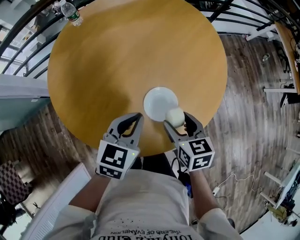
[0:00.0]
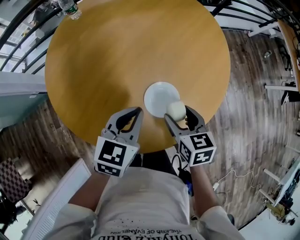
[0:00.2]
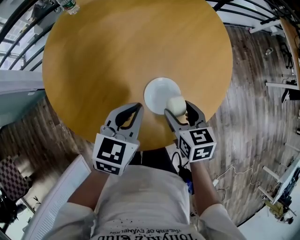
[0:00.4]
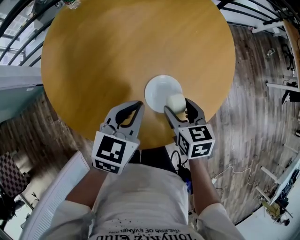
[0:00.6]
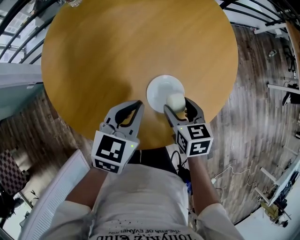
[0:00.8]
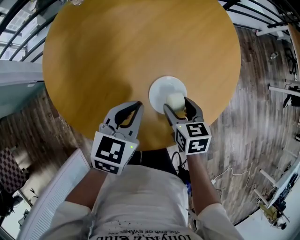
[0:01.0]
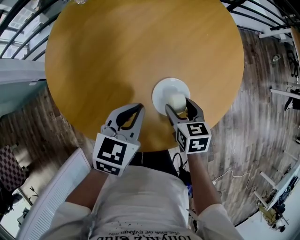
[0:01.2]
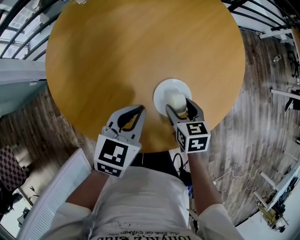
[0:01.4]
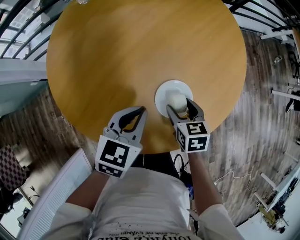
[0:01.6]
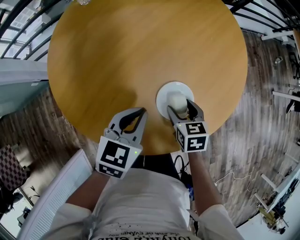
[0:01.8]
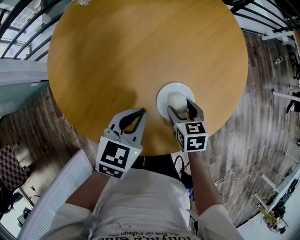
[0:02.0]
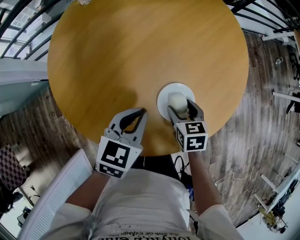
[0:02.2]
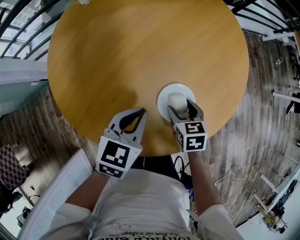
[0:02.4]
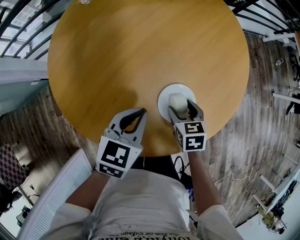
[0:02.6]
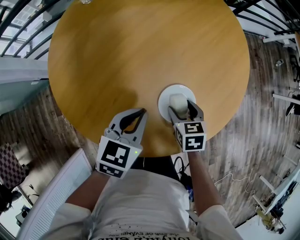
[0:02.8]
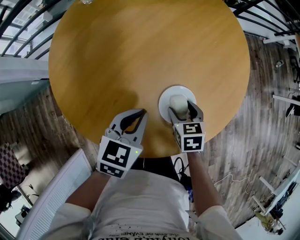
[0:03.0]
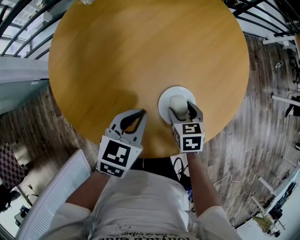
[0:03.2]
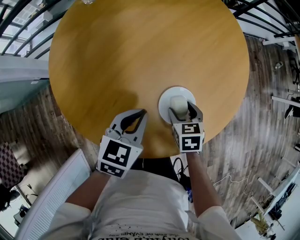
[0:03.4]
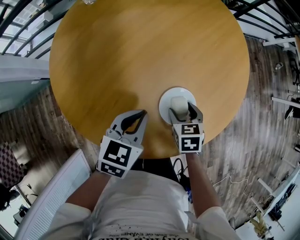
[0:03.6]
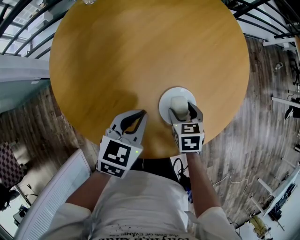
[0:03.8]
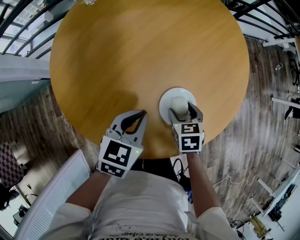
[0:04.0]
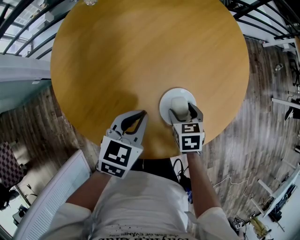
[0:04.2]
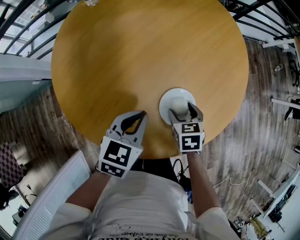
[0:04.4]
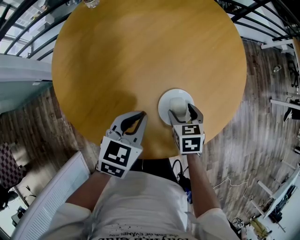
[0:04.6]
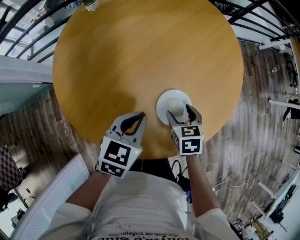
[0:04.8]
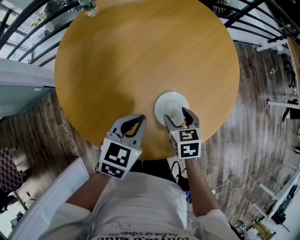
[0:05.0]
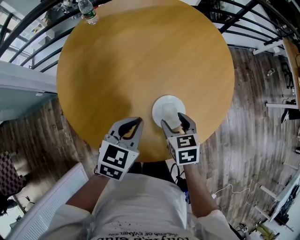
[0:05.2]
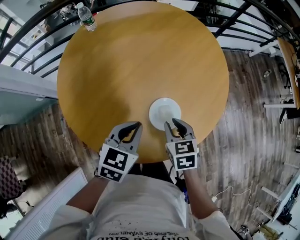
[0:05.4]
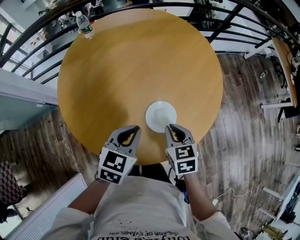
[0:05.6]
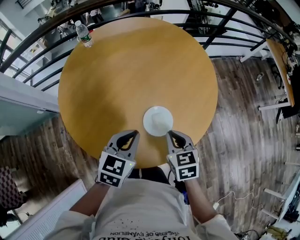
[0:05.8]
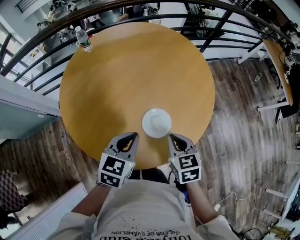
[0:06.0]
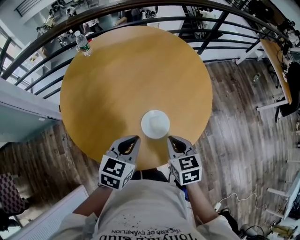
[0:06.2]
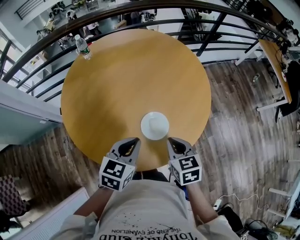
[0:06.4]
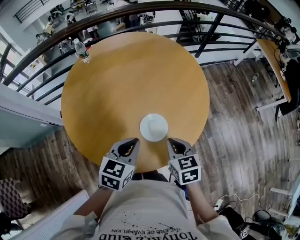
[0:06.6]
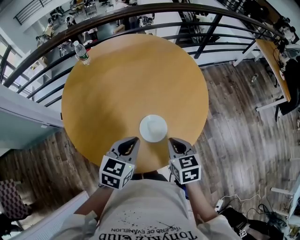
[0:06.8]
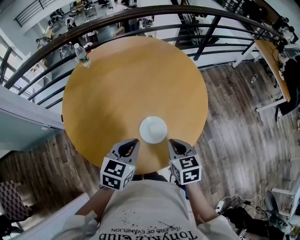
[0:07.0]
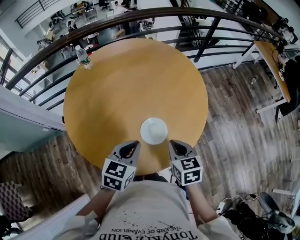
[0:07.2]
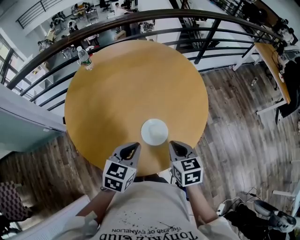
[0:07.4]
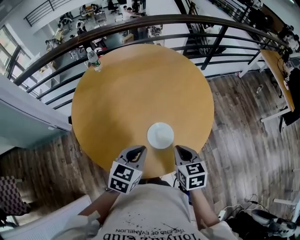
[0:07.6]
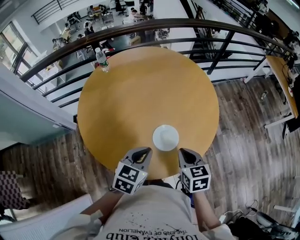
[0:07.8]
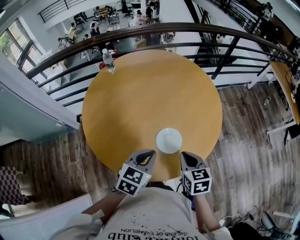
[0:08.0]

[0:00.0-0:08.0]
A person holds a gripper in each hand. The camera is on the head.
0:00.0 to 0:01.6: The right gripper travels downward by some 10 cm; the left gripper moves roughly 5 cm.
0:01.6 to 0:04.8: There are only small adjustments of the grippers.
0:04.8 to 0:06.4: The left gripper travels upward and backward by approximately 10 cm; the right gripper travels upward and backward by roughly 15 cm, and closes its fingers.
0:06.4 to 0:08.0: The grippers make only small movements.

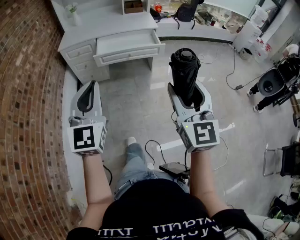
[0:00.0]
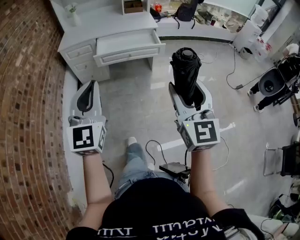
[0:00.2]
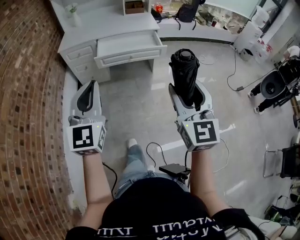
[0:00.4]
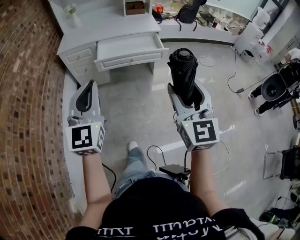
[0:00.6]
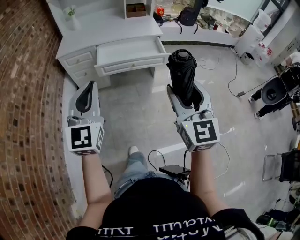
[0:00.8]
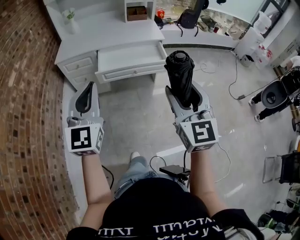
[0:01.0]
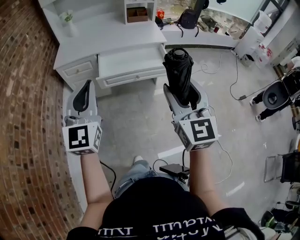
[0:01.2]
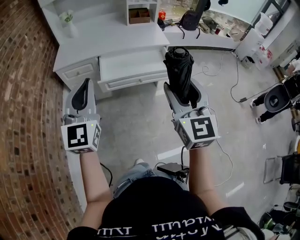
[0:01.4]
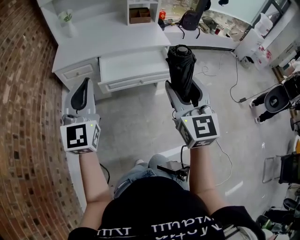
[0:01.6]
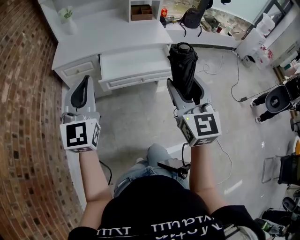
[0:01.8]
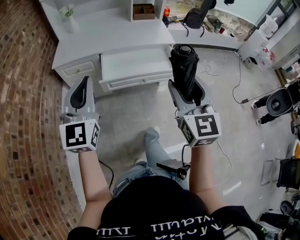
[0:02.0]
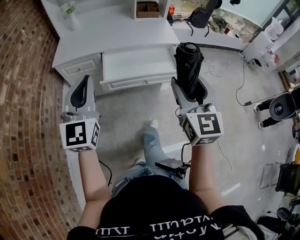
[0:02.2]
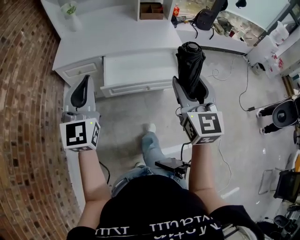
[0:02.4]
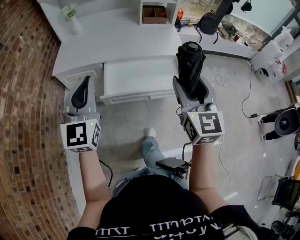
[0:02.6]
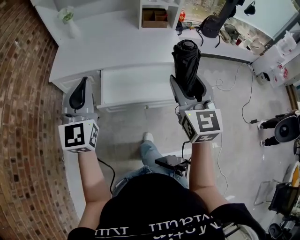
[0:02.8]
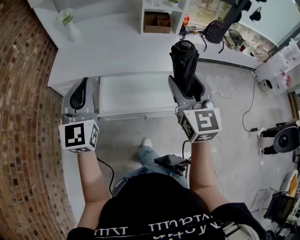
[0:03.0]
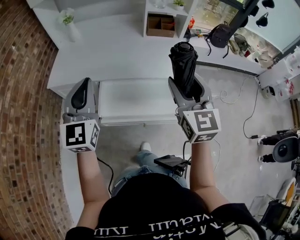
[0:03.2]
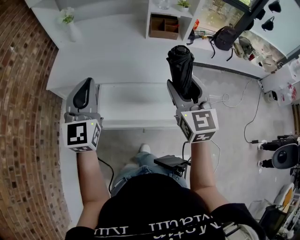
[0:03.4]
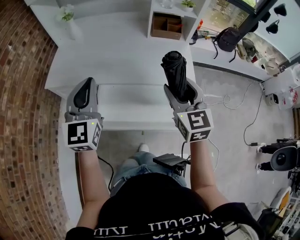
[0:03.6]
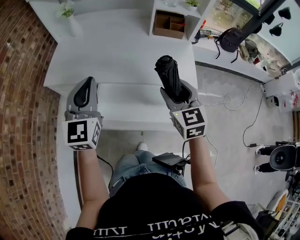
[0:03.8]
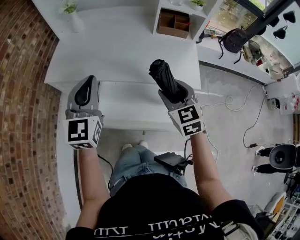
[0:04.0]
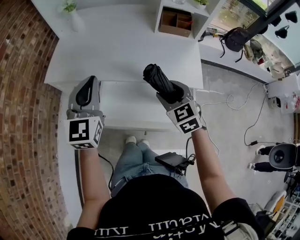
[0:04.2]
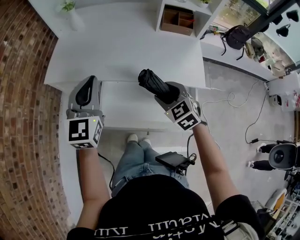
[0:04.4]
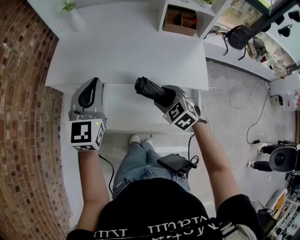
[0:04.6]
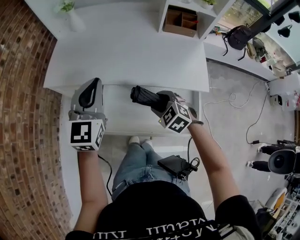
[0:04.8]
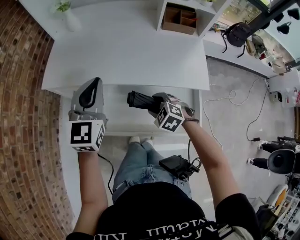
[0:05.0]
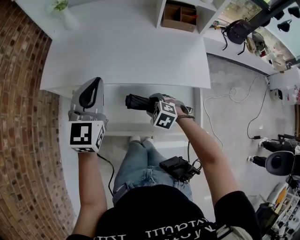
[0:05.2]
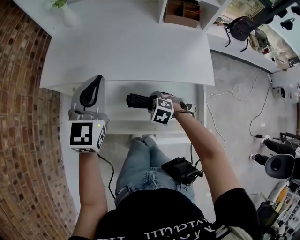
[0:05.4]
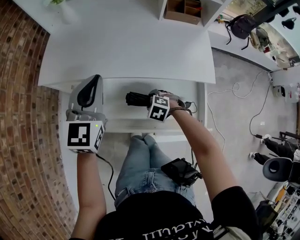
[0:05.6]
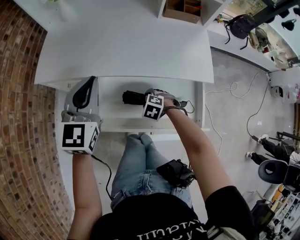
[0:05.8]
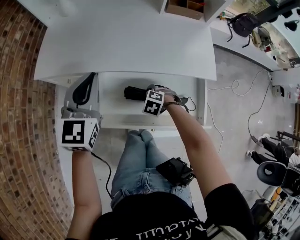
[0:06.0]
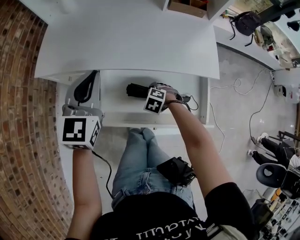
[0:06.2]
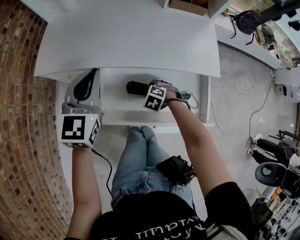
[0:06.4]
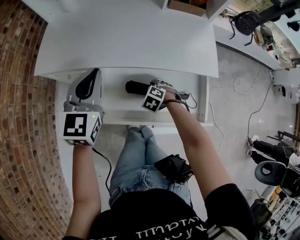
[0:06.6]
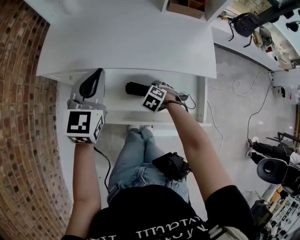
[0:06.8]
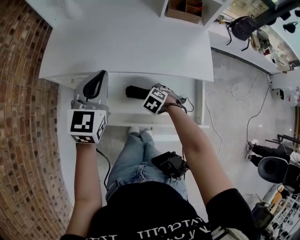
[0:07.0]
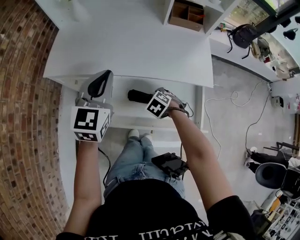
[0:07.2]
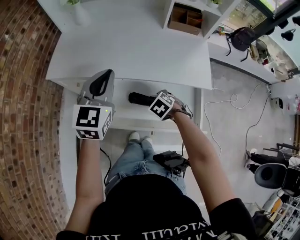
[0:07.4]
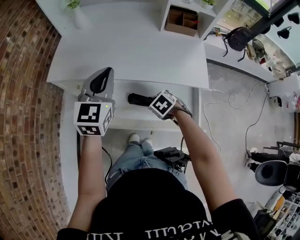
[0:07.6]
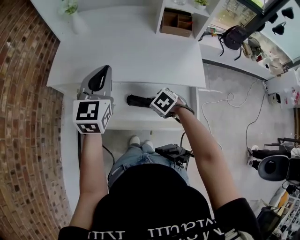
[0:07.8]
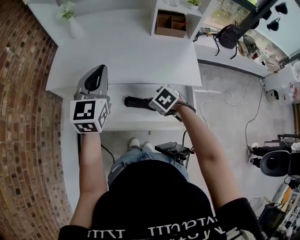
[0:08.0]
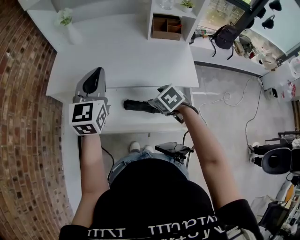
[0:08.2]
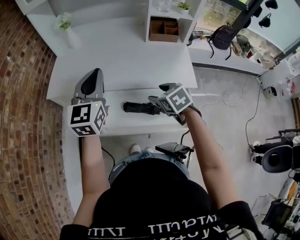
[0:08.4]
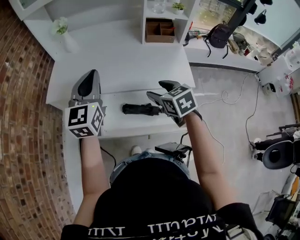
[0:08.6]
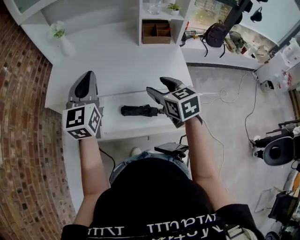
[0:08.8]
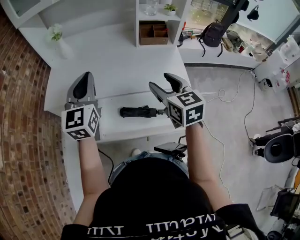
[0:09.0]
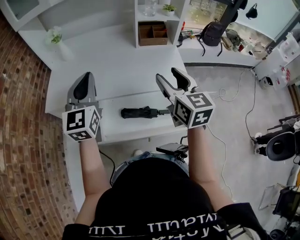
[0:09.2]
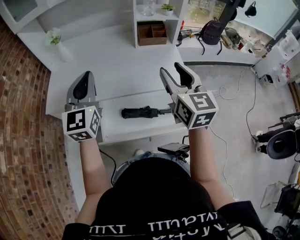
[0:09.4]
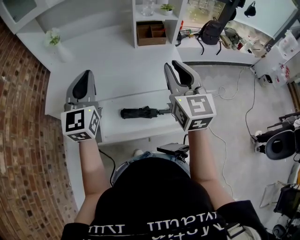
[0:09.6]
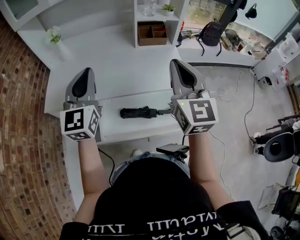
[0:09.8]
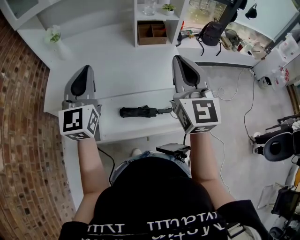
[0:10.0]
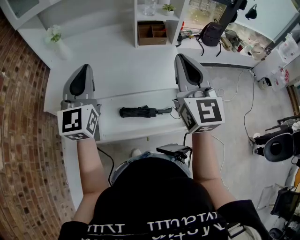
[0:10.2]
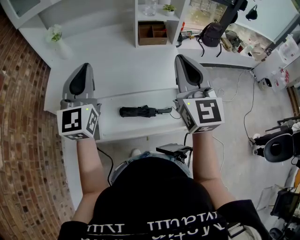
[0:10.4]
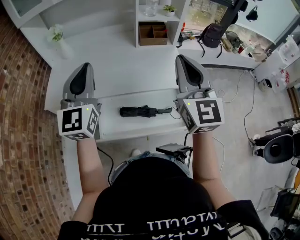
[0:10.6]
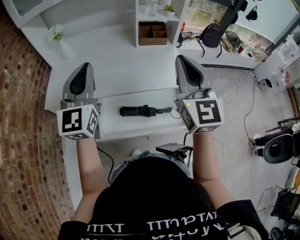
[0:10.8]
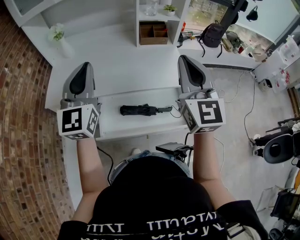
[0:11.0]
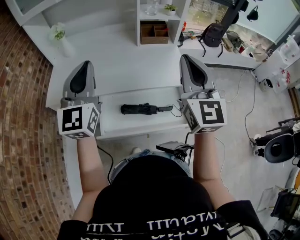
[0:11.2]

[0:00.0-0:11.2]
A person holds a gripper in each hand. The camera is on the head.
0:00.0 to 0:01.6: The two grippers go about 30 cm forward.
0:01.6 to 0:03.2: The grippers both shift forward by about 35 cm.
0:03.2 to 0:04.8: The left gripper shifts some 15 cm forward and downward. The right gripper goes roughly 30 cm downward, and tips its fingers downward by approximately 50 degrees.
0:04.8 to 0:06.4: The left gripper shifts about 5 cm downward; the right gripper moves downward, about 20 cm, and changes its angle by about 20 degrees.
0:06.4 to 0:08.0: The left gripper heads upward, covering roughly 10 cm; the right gripper travels upward by approximately 20 cm, and rotates about 30 degrees.
0:08.0 to 0:09.6: The left gripper moves upward, some 5 cm. Meanwhile the right gripper moves upward, approximately 30 cm, tilts its fingers about 60 degrees upward, and closes its fingers.
0:09.6 to 0:11.2: The right gripper travels upward by approximately 5 cm. Meanwhile the left gripper ends up about 5 cm from where it was.

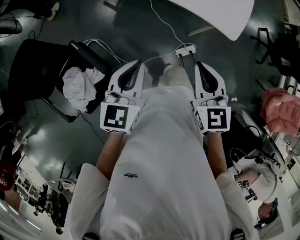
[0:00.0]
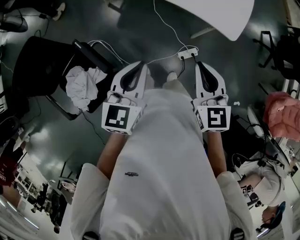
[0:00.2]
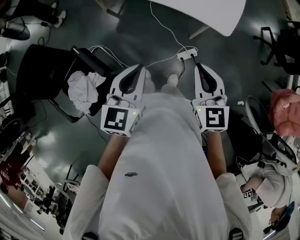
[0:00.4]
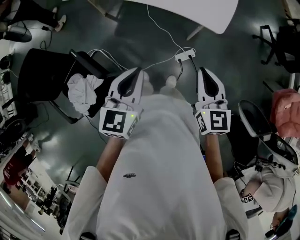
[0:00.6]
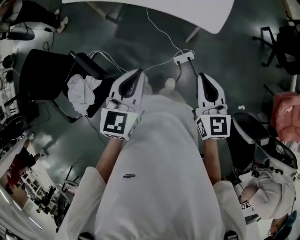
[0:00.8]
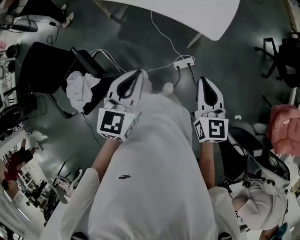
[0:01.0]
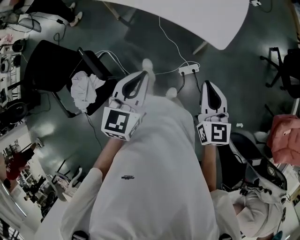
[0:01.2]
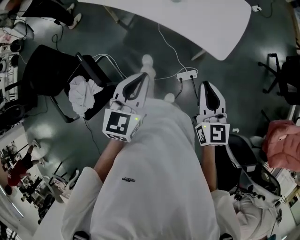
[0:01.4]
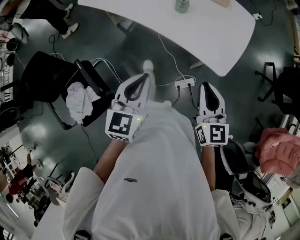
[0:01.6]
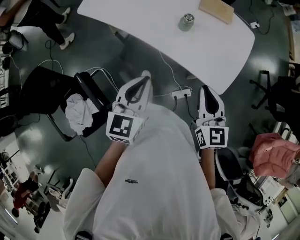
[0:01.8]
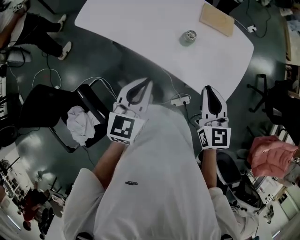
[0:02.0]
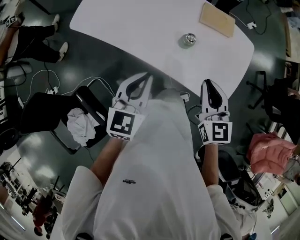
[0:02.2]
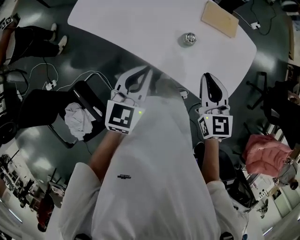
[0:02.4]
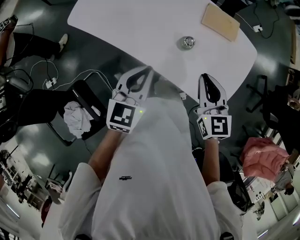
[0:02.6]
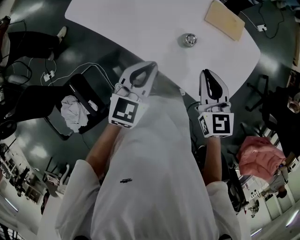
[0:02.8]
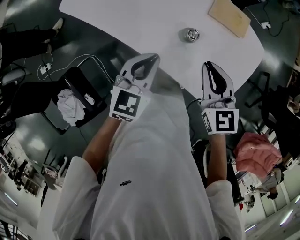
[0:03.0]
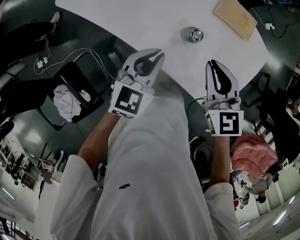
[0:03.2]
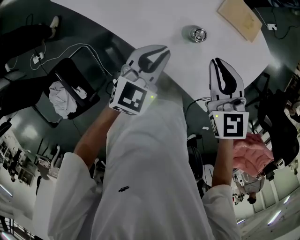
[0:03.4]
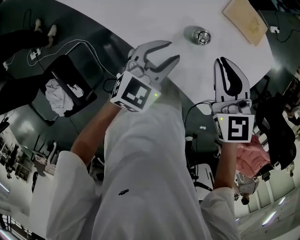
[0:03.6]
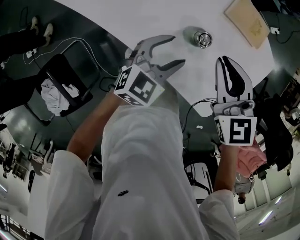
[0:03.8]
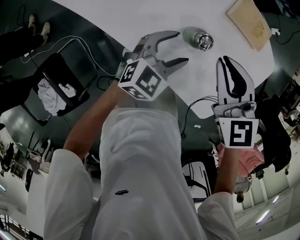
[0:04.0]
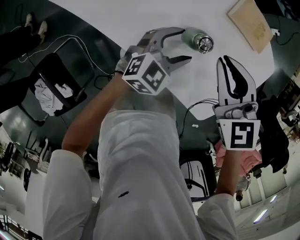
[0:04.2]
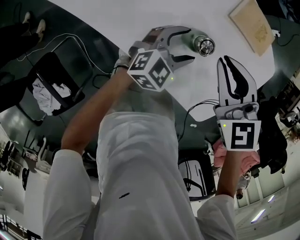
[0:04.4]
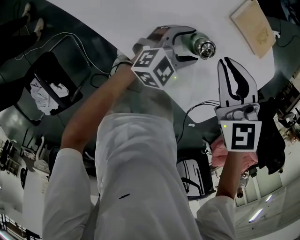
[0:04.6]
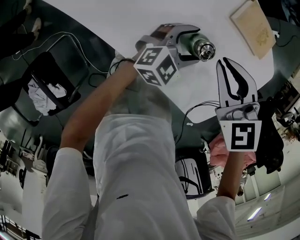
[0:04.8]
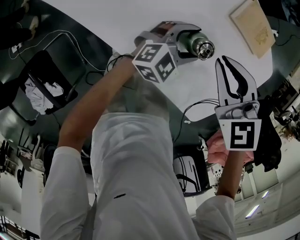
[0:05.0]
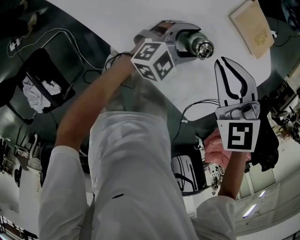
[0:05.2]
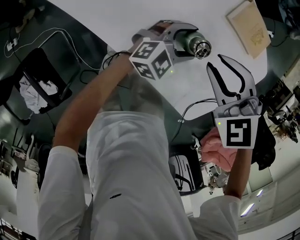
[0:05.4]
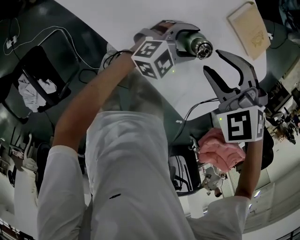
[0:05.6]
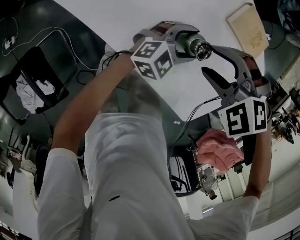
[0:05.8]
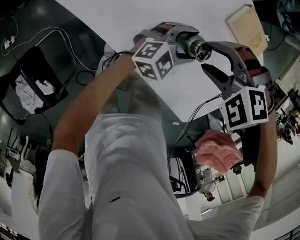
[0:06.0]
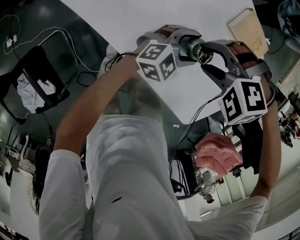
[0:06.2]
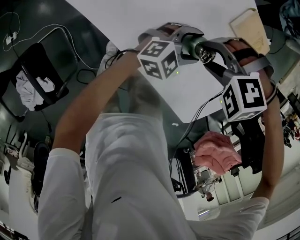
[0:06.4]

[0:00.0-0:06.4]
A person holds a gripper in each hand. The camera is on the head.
0:00.0 to 0:01.6: The grippers both shift to the right and forward by roughly 15 cm.
0:01.6 to 0:03.2: Both grippers travel together forward, roughly 35 cm. The right gripper changes its angle by approximately 20 degrees.
0:03.2 to 0:04.8: The right gripper goes about 10 cm downward and forward, and changes its angle by about 30 degrees. The left gripper shifts about 25 cm downward, to the right and forward, changes its angle by approximately 30 degrees, and opens.
0:04.8 to 0:06.4: The right gripper shifts some 10 cm downward, tilts its fingers about 40 degrees downward, and opens up.
